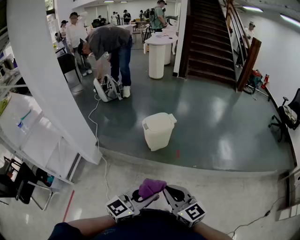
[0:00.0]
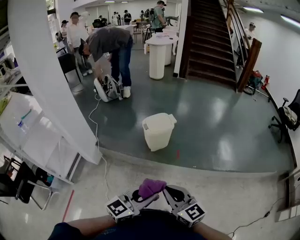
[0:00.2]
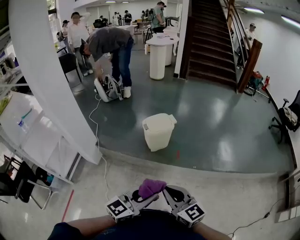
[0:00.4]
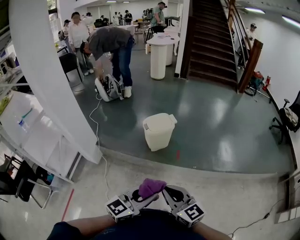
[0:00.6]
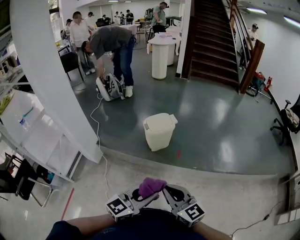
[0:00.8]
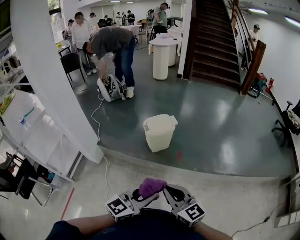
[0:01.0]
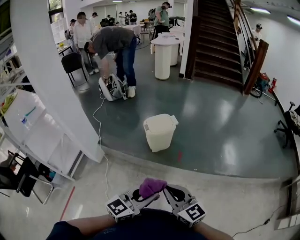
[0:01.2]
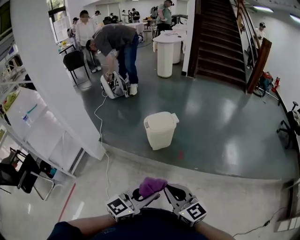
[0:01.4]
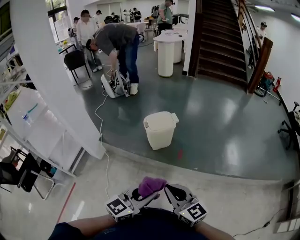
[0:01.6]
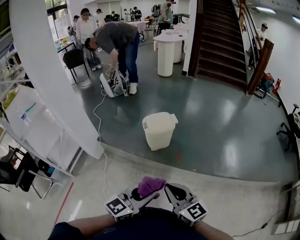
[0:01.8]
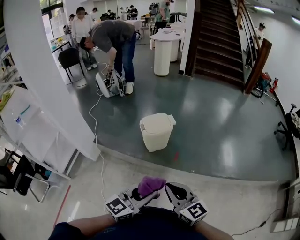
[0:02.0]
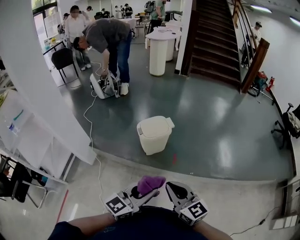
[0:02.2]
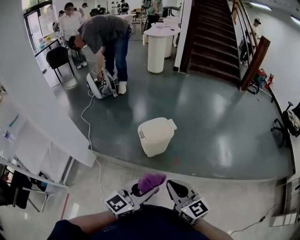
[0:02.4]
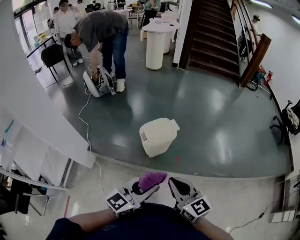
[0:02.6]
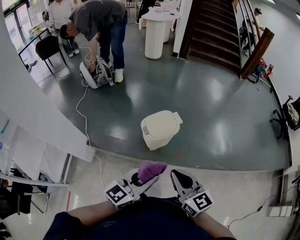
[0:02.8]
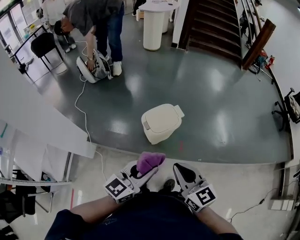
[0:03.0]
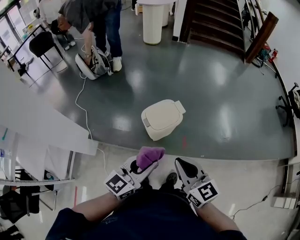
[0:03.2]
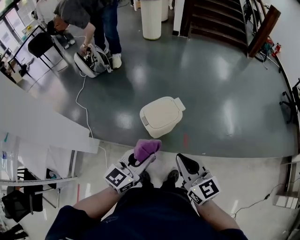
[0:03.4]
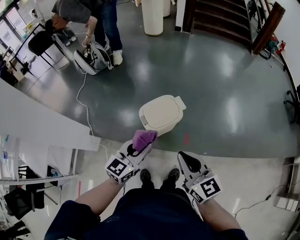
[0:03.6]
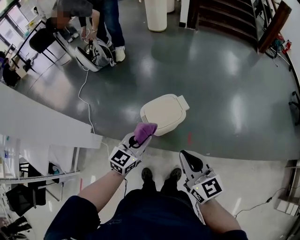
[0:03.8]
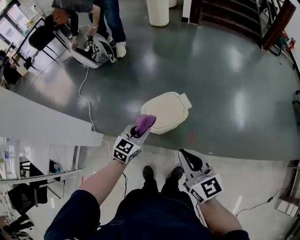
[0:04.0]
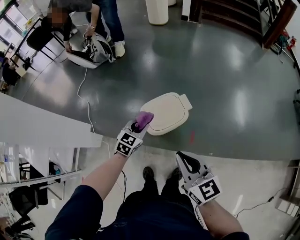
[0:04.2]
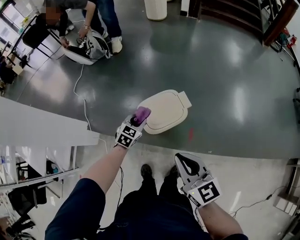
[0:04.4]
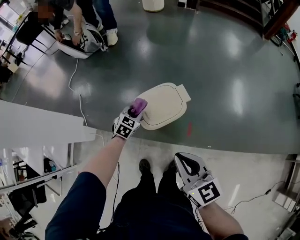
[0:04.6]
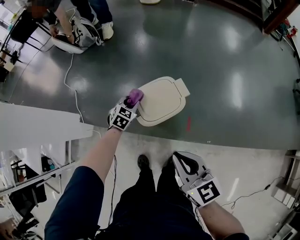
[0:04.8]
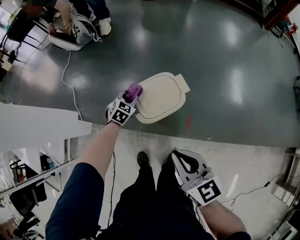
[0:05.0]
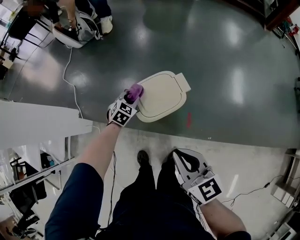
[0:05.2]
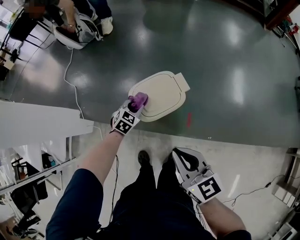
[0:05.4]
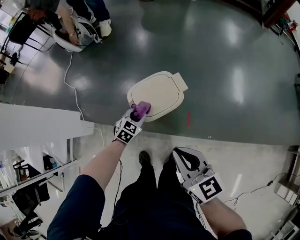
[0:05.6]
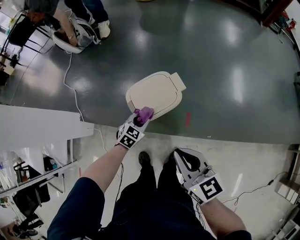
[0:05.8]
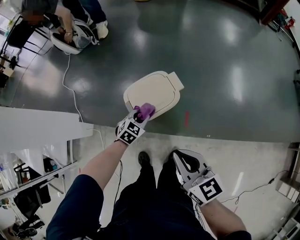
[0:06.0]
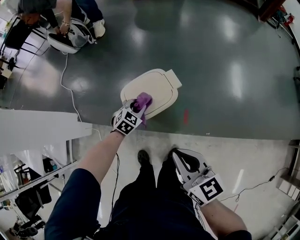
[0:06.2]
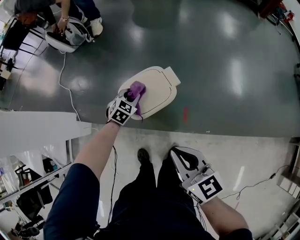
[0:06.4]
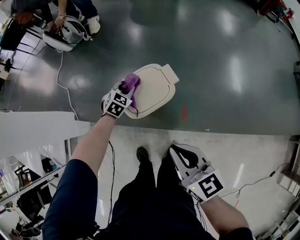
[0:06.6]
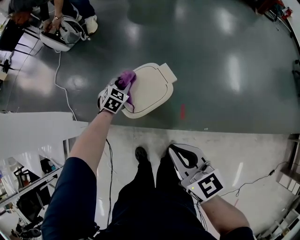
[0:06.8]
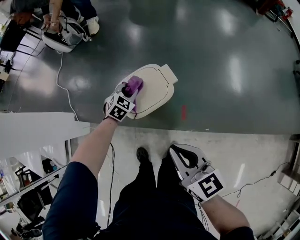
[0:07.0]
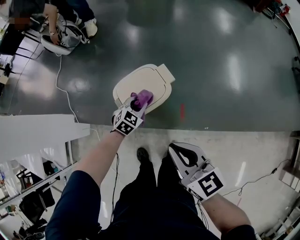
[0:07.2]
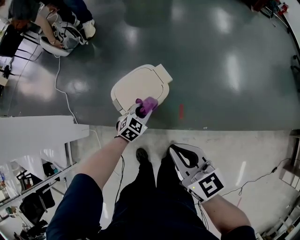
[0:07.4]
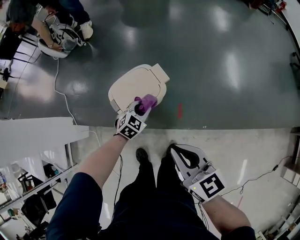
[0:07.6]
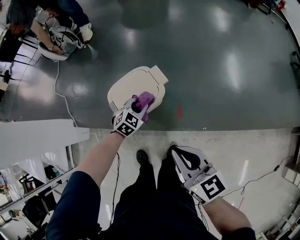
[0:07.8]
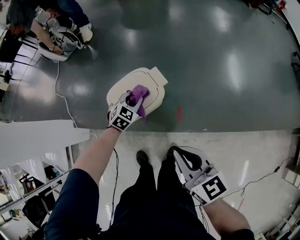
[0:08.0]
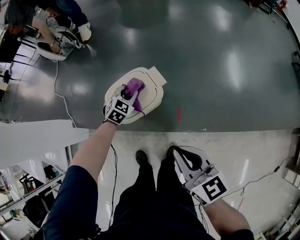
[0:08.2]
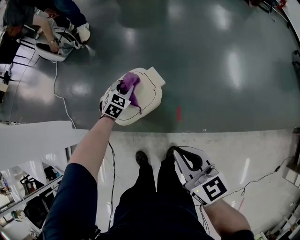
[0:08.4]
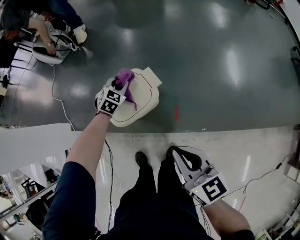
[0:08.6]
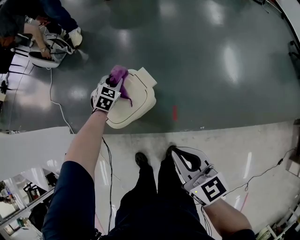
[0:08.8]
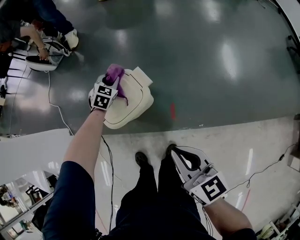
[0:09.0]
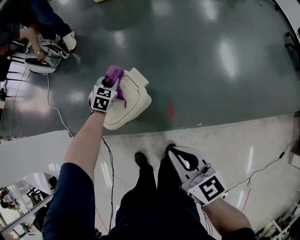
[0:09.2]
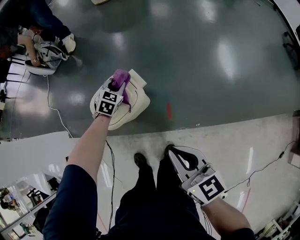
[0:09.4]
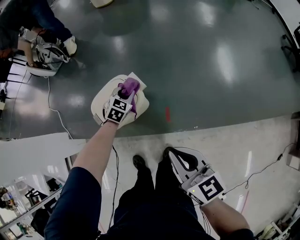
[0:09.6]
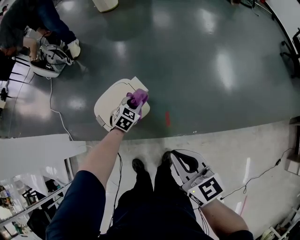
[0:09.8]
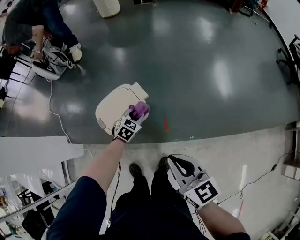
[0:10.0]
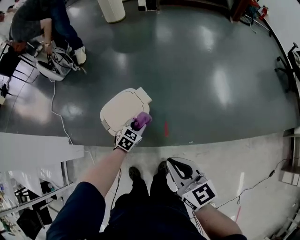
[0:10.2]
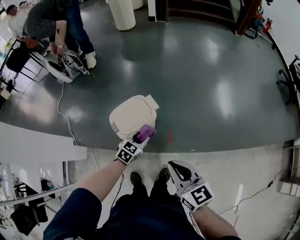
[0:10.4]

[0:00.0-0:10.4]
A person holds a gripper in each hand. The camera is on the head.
0:00.0 to 0:01.4: The two grippers go about 5 cm to the right.
0:01.4 to 0:03.0: Both grippers travel together forward and to the left, roughly 35 cm.
0:03.0 to 0:04.4: The right gripper moves forward, downward and to the right, some 20 cm. The left gripper shifts about 40 cm forward and downward, and tips its fingers downward by roughly 40 degrees.
0:04.4 to 0:06.0: The right gripper heads downward, covering some 5 cm. Meanwhile the left gripper heads downward and to the right, covering approximately 10 cm, and moves about 5 cm forward and comes back.
0:06.0 to 0:07.4: The left gripper moves to the right, some 5 cm, and moves about 15 cm forward and comes back.
0:07.4 to 0:09.0: The left gripper is displaced forward by roughly 20 cm, while the right gripper shifts about 10 cm to the right.
0:09.0 to 0:10.4: The left gripper travels backward by roughly 25 cm, and swivels approximately 20 degrees; the right gripper travels upward and backward by roughly 10 cm.

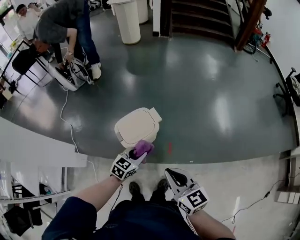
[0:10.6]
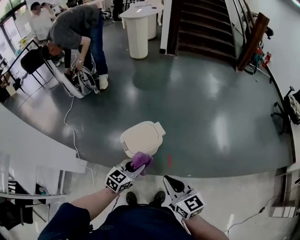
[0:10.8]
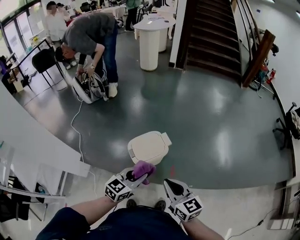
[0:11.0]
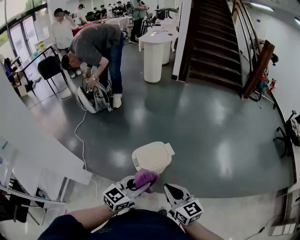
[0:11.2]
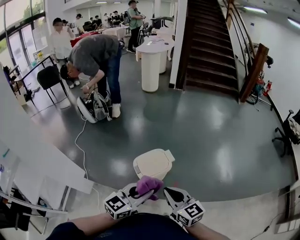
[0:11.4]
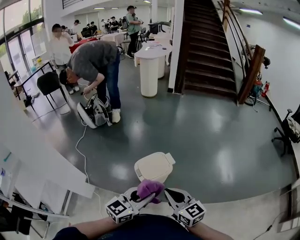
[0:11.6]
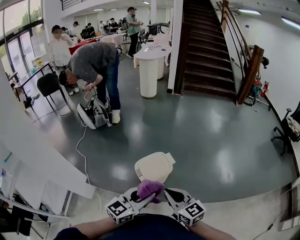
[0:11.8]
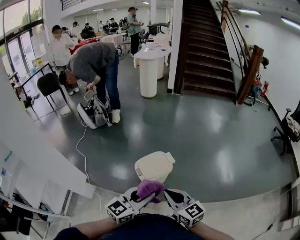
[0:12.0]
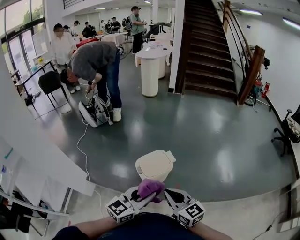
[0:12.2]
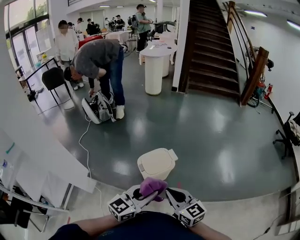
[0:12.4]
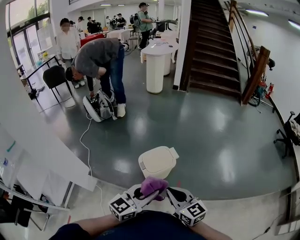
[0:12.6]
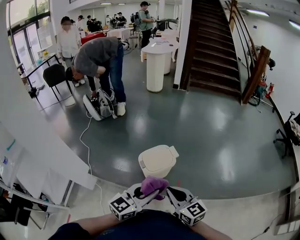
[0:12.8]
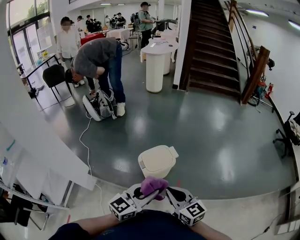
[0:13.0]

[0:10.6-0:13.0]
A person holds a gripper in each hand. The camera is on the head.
0:10.6 to 0:11.8: The left gripper goes about 30 cm upward and backward, and changes its angle by about 30 degrees, while the right gripper shifts some 15 cm to the left and upward.
0:11.8 to 0:13.0: The grippers stay close to where they were, moving slightly.

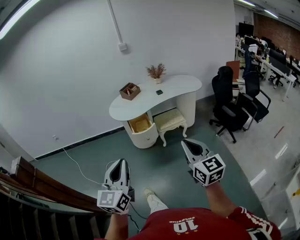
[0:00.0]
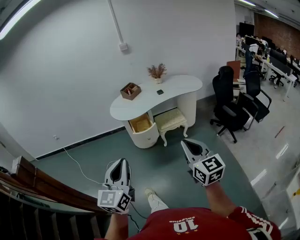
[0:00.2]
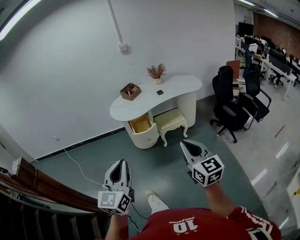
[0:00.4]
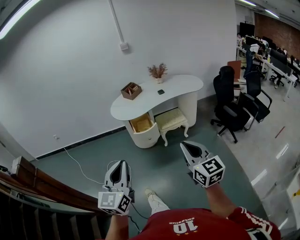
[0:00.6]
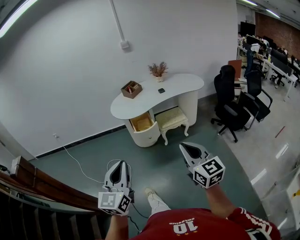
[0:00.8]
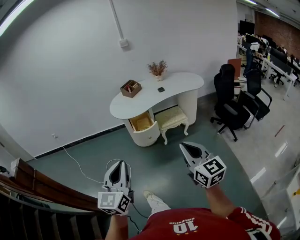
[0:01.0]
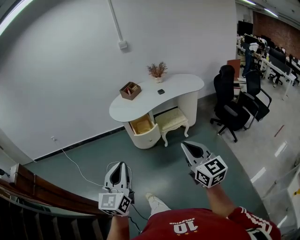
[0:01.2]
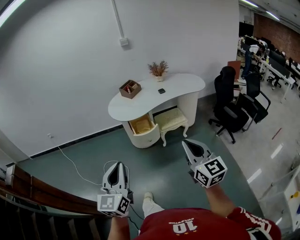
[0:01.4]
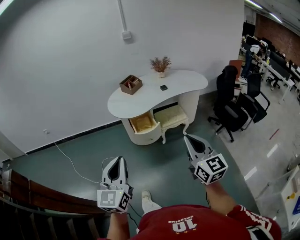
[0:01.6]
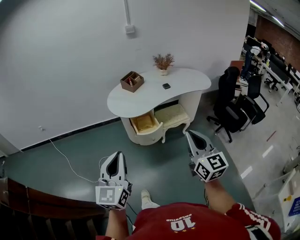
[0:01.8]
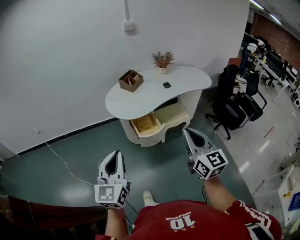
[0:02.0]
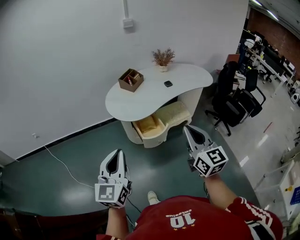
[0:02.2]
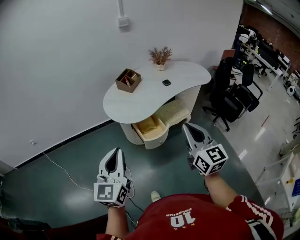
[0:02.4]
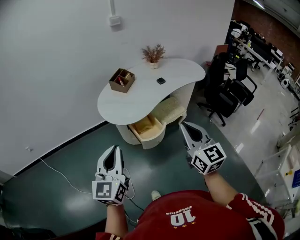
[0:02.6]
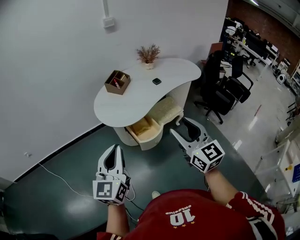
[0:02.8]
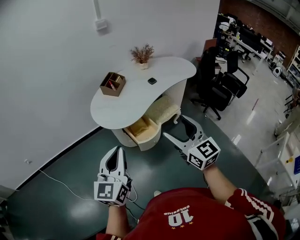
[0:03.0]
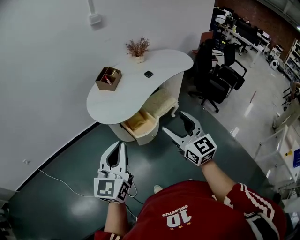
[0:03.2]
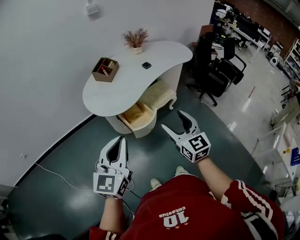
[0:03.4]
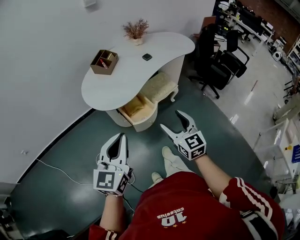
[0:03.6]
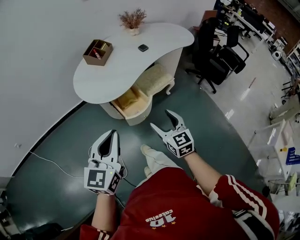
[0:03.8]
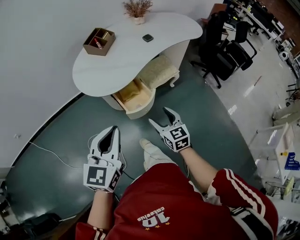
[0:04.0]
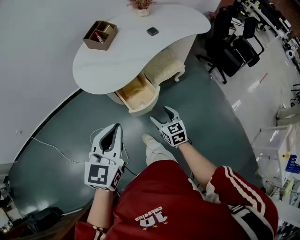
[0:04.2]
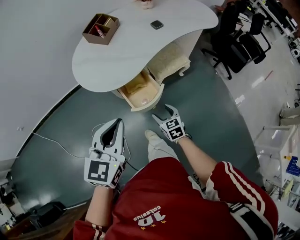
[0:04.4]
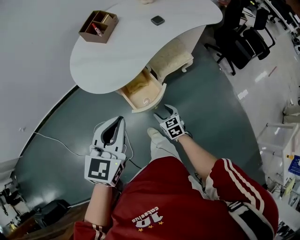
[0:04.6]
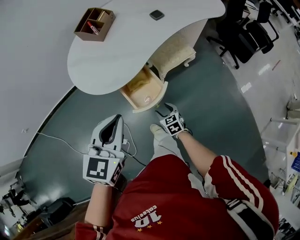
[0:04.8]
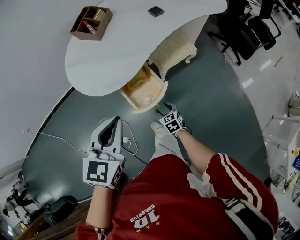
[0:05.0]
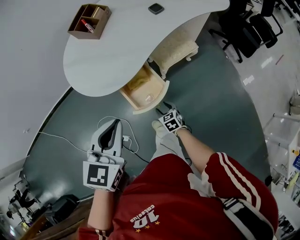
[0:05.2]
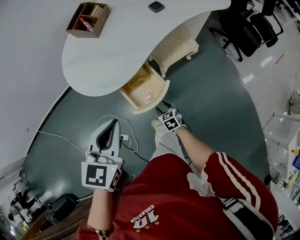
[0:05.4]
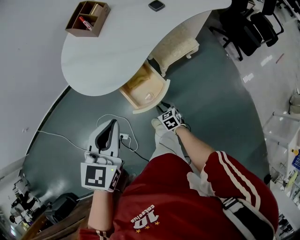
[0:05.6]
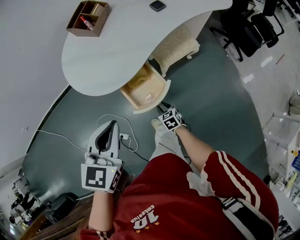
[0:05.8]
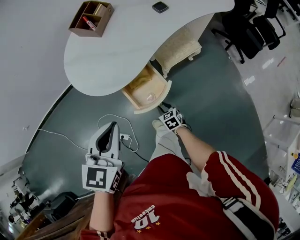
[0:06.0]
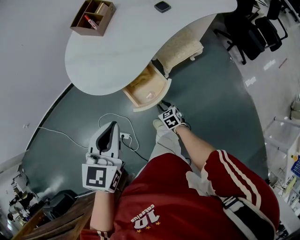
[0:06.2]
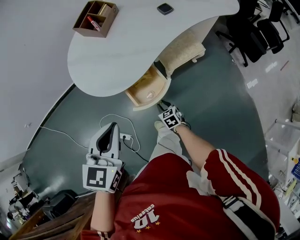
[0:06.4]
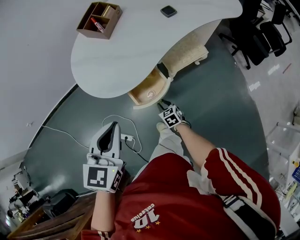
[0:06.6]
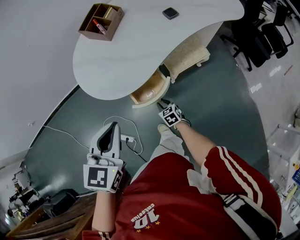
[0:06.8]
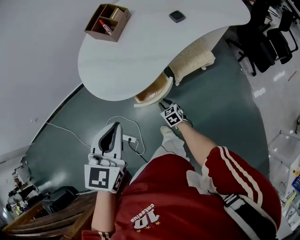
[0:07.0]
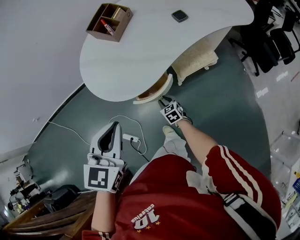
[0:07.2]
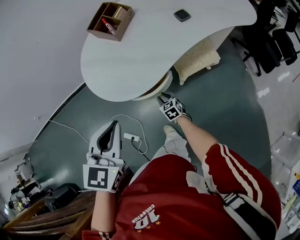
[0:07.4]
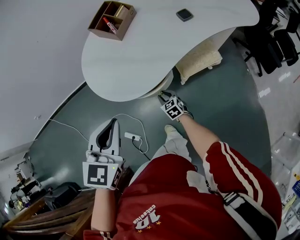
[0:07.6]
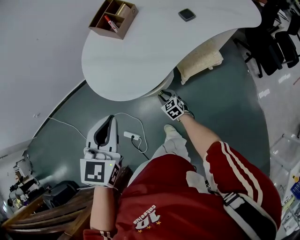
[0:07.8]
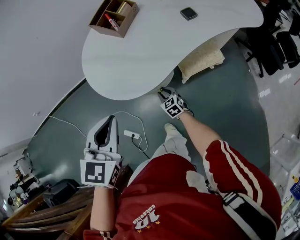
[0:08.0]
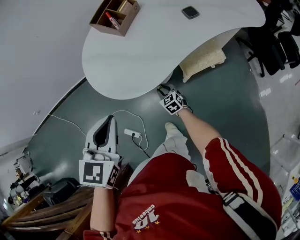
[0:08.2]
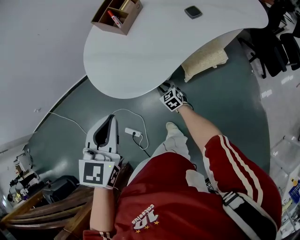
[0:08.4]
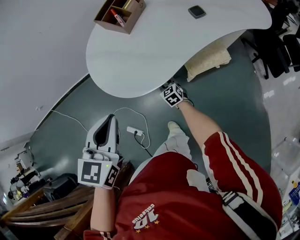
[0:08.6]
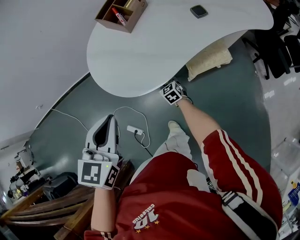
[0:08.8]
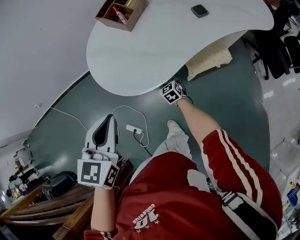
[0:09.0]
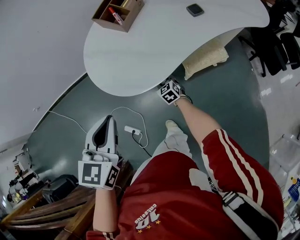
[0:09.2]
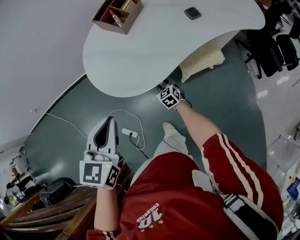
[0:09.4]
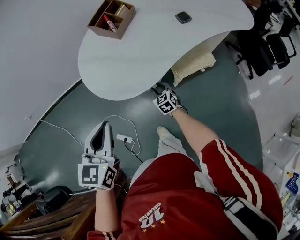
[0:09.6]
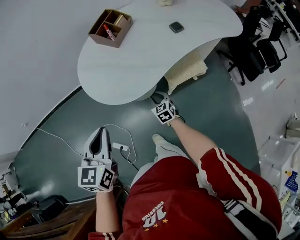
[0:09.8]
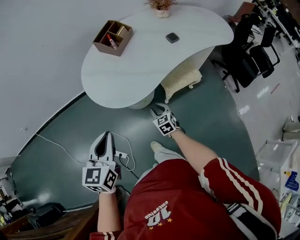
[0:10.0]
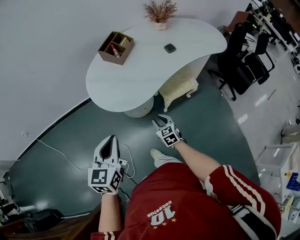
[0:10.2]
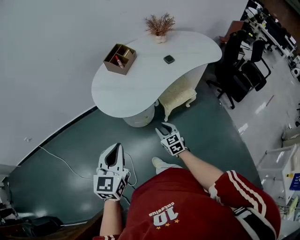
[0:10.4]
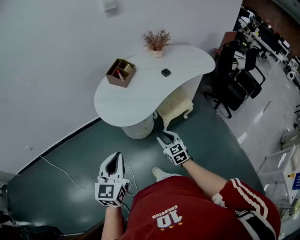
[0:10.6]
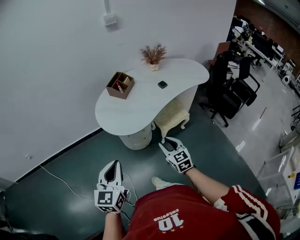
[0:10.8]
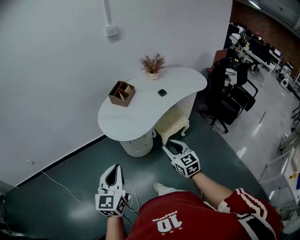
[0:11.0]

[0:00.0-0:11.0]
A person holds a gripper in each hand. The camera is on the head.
0:00.0 to 0:01.6: The two grippers go some 15 cm forward and to the left.
0:01.6 to 0:03.2: The two grippers go about 30 cm forward and to the left. The right gripper opens. The left gripper turns by some 20 degrees.
0:03.2 to 0:04.8: The right gripper is displaced downward by some 50 cm, and tips its fingers downward by about 40 degrees; the left gripper heads forward and downward, covering roughly 25 cm, and swivels roughly 30 degrees.
0:04.8 to 0:06.2: The right gripper shifts about 5 cm downward, and closes its fingers.
0:06.2 to 0:07.8: The left gripper moves forward, about 10 cm. Meanwhile the right gripper heads forward, covering about 15 cm.
0:07.8 to 0:09.4: The right gripper heads forward, covering some 5 cm.
0:09.4 to 0:11.0: The right gripper travels upward and backward by roughly 50 cm, and swivels some 30 degrees. The left gripper is displaced backward and upward by approximately 25 cm, and turns by approximately 20 degrees.
